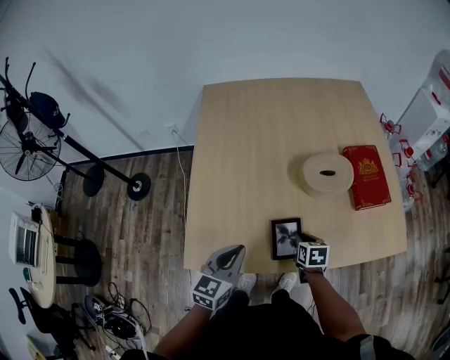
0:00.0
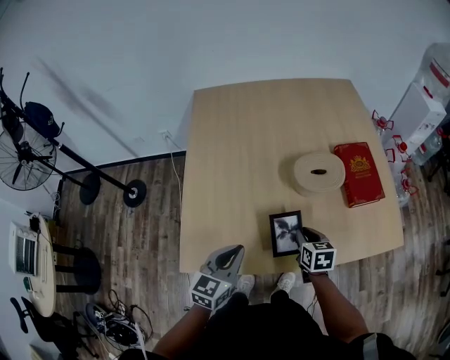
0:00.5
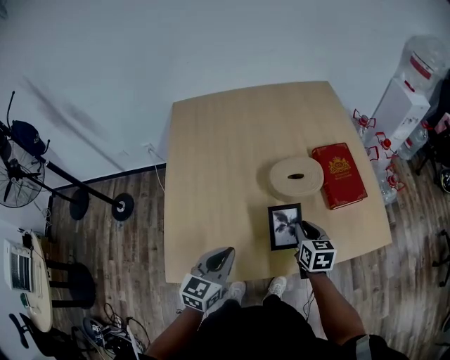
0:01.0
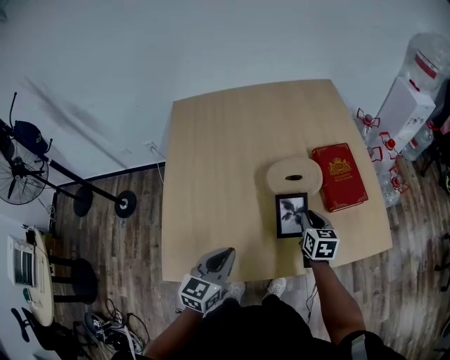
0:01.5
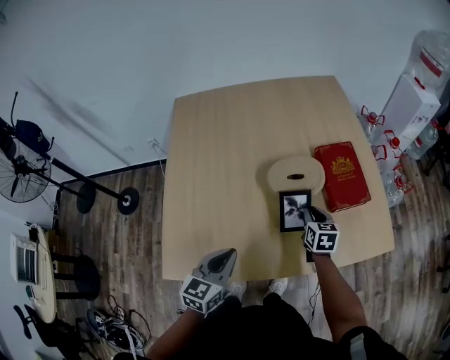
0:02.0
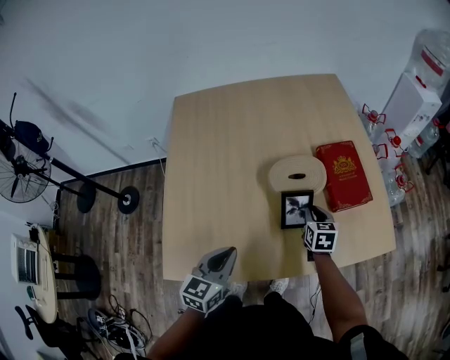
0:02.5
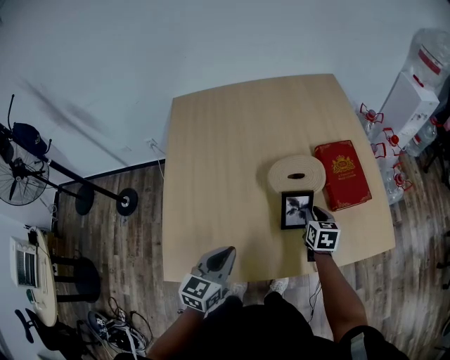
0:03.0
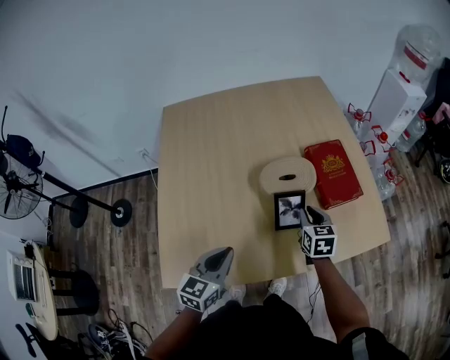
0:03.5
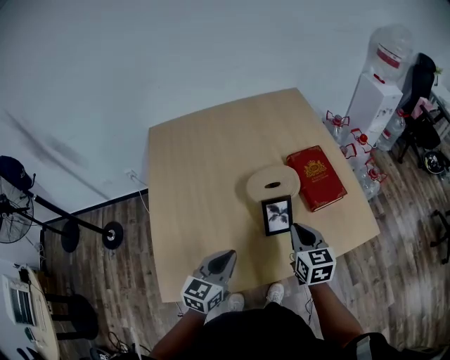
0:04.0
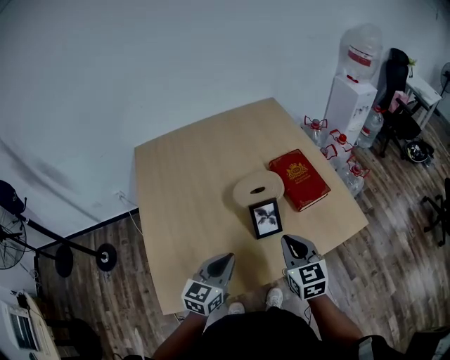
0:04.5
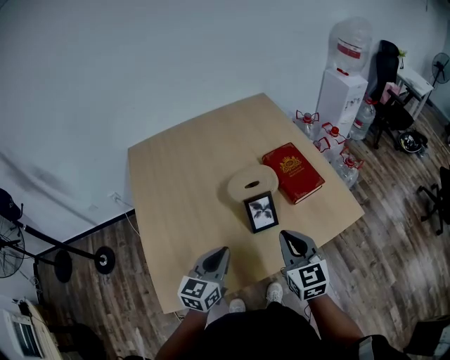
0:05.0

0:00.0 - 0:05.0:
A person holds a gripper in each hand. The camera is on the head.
0:00.0 - 0:02.5: The left gripper goes roughly 10 cm to the right. Meanwhile the right gripper shifts some 20 cm forward, to the right and upward.
0:02.5 - 0:05.0: The right gripper is displaced upward and backward by roughly 25 cm, and turns by about 20 degrees; the left gripper shifts by about 5 cm.

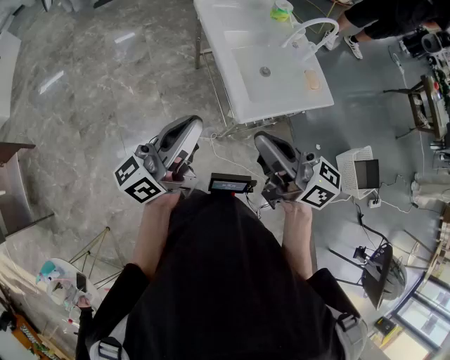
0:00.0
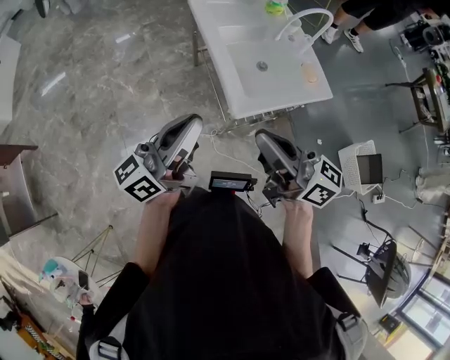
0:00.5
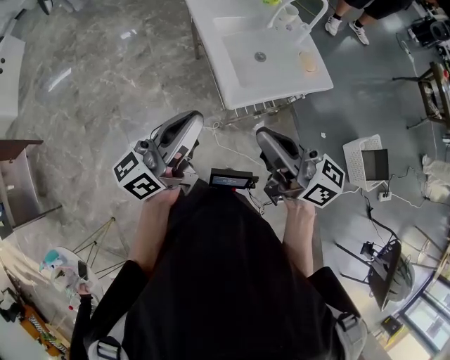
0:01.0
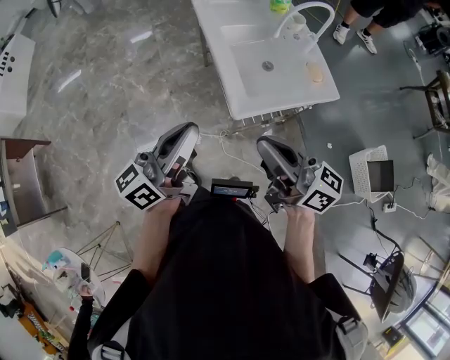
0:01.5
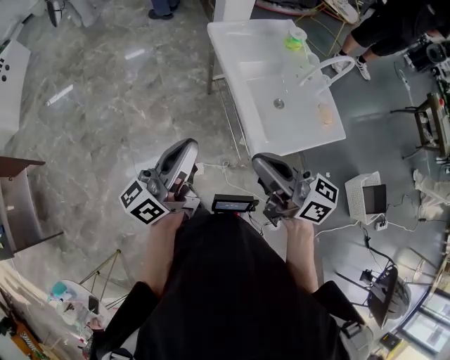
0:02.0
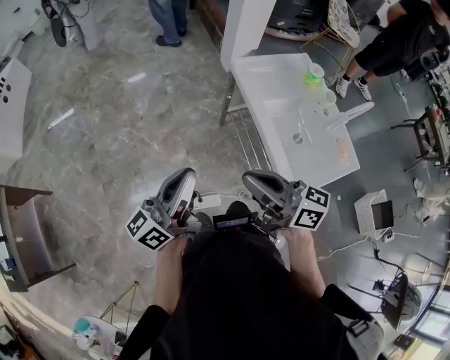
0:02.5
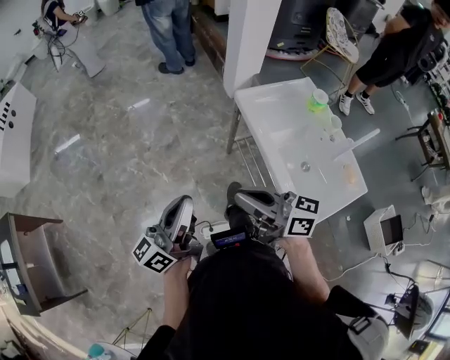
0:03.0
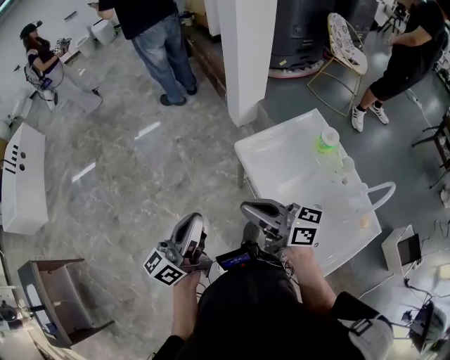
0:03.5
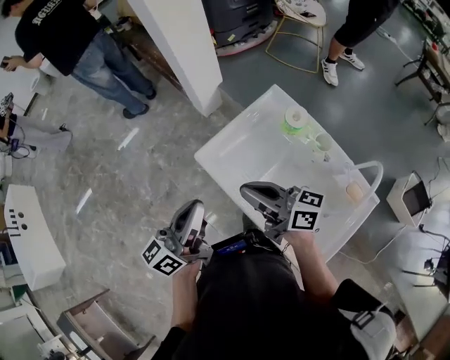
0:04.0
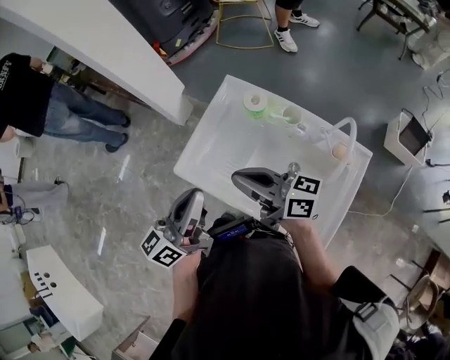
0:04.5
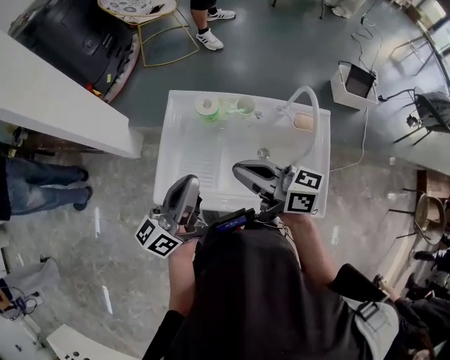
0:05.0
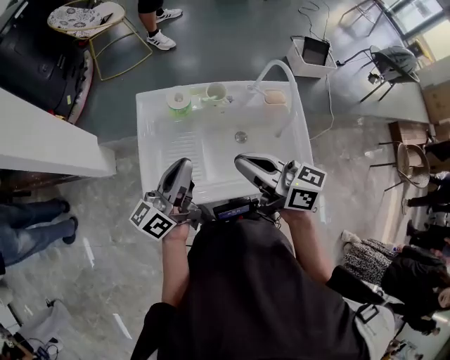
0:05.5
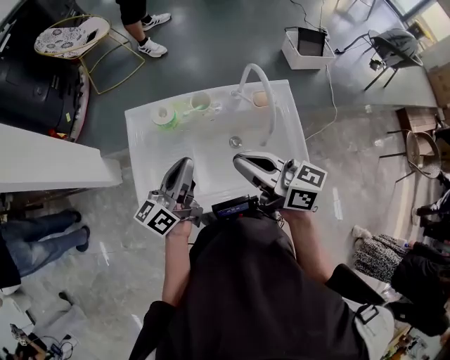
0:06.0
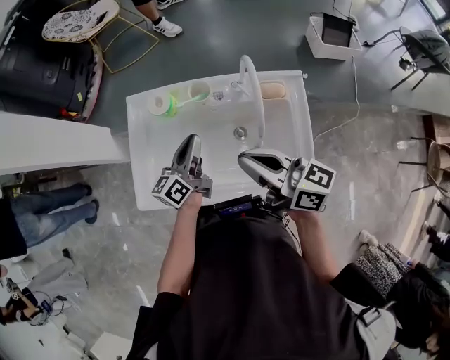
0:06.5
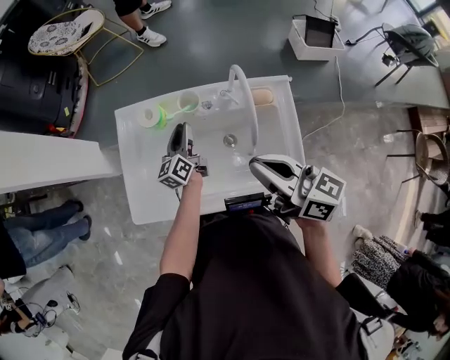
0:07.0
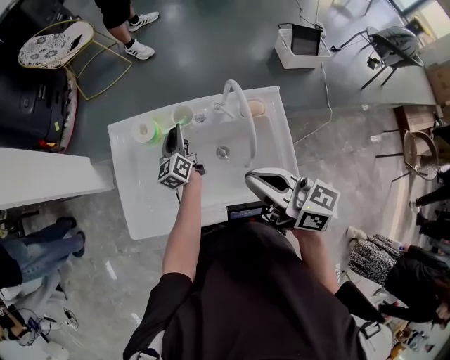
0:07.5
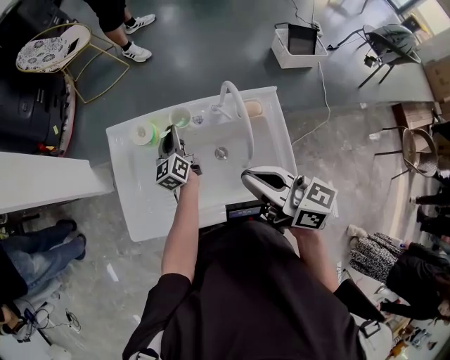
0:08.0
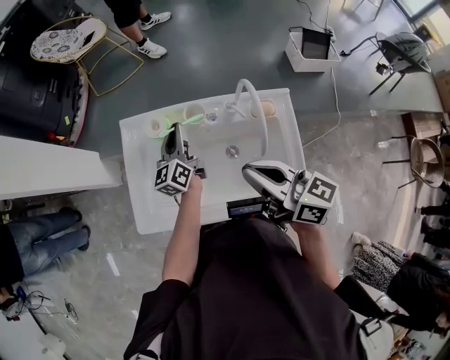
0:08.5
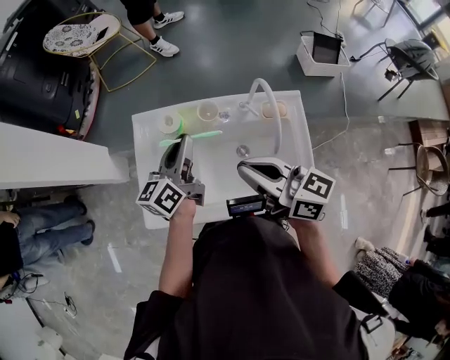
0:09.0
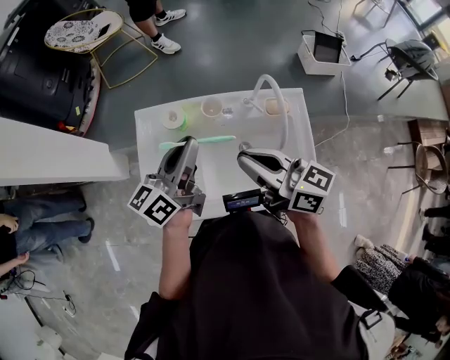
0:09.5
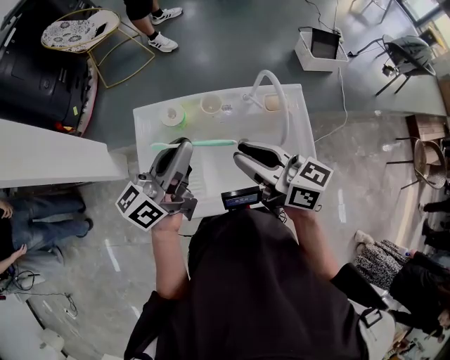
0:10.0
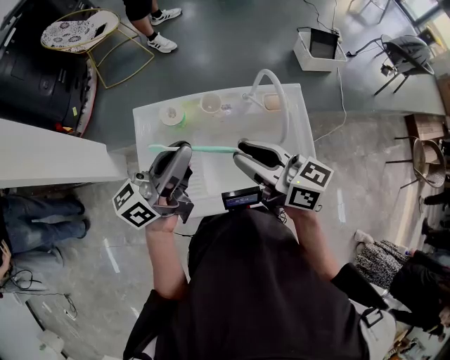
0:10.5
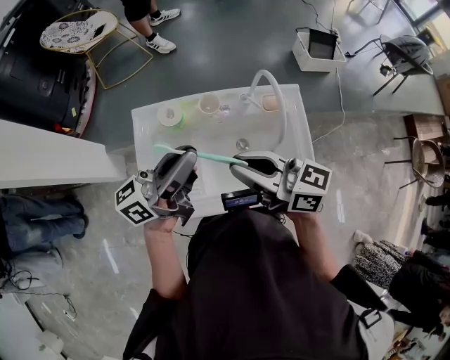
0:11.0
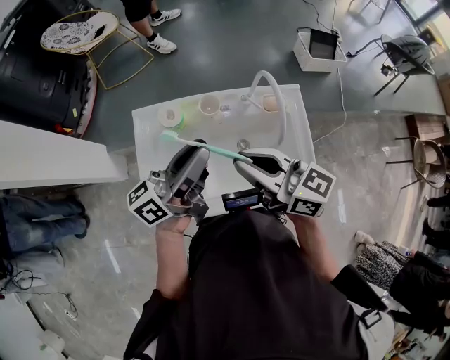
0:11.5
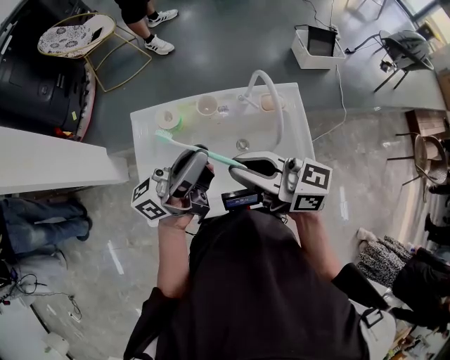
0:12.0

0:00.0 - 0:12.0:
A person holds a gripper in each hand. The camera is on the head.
0:00.0 - 0:02.0: The right gripper shifts some 10 cm forward; the left gripper shifts some 10 cm forward and to the left.
0:02.0 - 0:04.0: Both grippers are carried forward, roughly 40 cm.
0:04.0 - 0:06.0: The left gripper changes place by roughly 25 cm, and turns by some 60 degrees. The right gripper shifts by some 20 cm, and rotates some 60 degrees.
0:06.0 - 0:08.0: The right gripper goes some 5 cm to the right; the left gripper heads forward and downward, covering about 25 cm, and turns by approximately 30 degrees.
0:08.0 - 0:10.0: The right gripper travels to the left by roughly 10 cm, and opens up; the left gripper heads upward and backward, covering roughly 25 cm, and rotates roughly 40 degrees.
0:10.0 - 0:12.0: The left gripper ends up some 5 cm from where it was, and changes its angle by approximately 30 degrees.

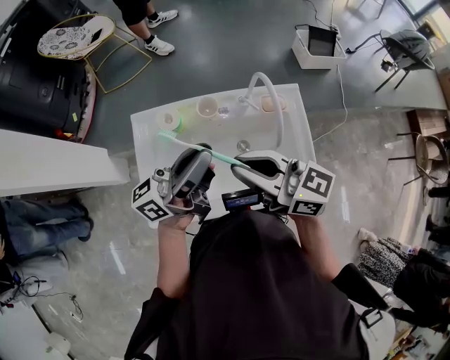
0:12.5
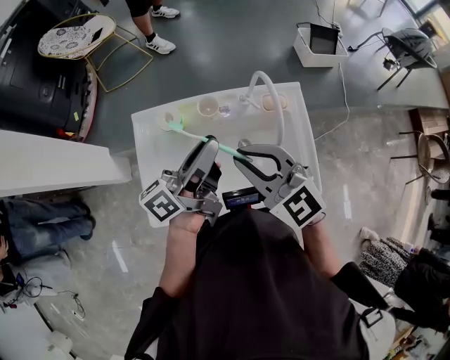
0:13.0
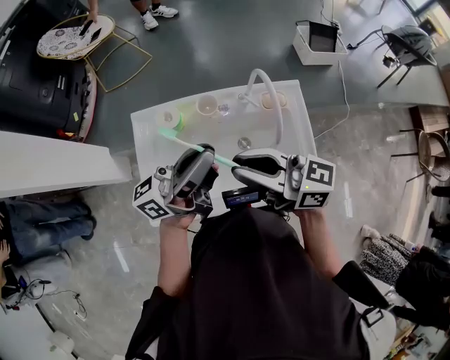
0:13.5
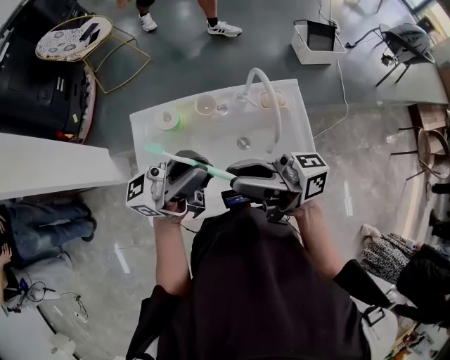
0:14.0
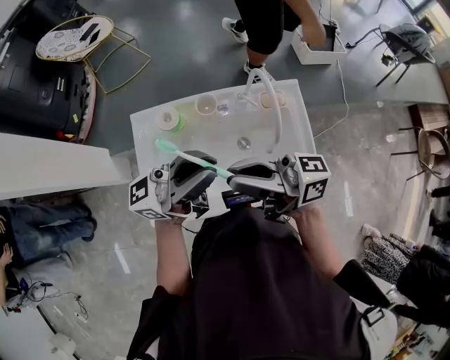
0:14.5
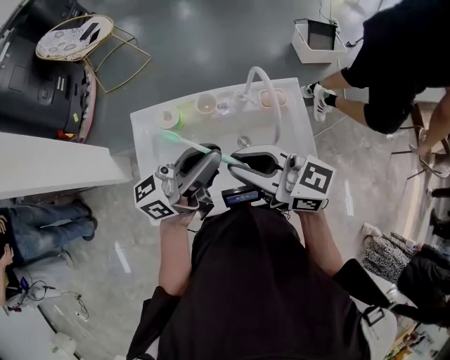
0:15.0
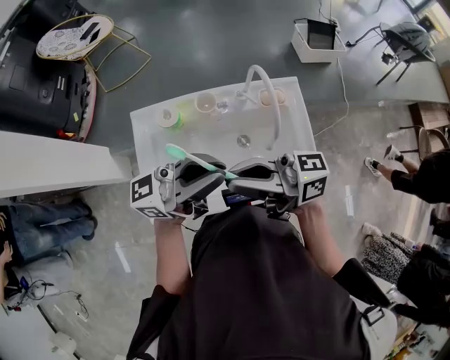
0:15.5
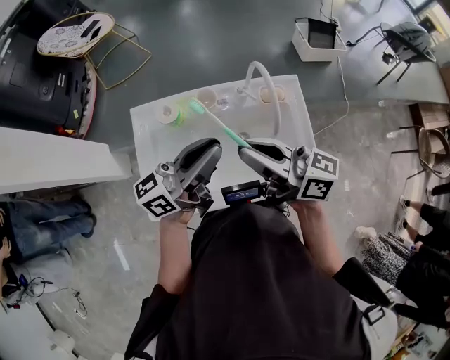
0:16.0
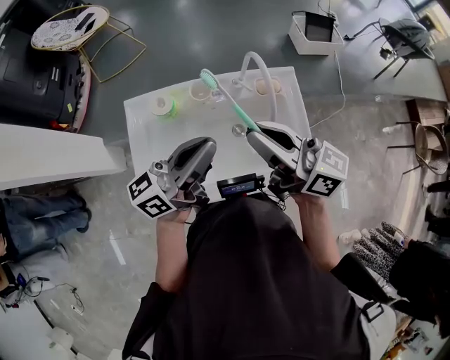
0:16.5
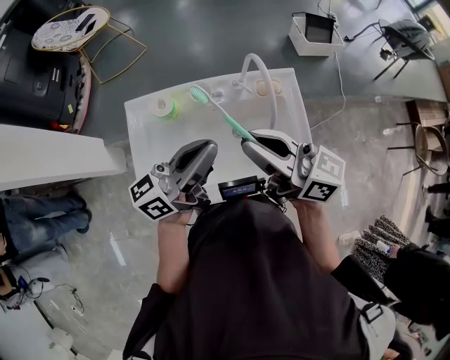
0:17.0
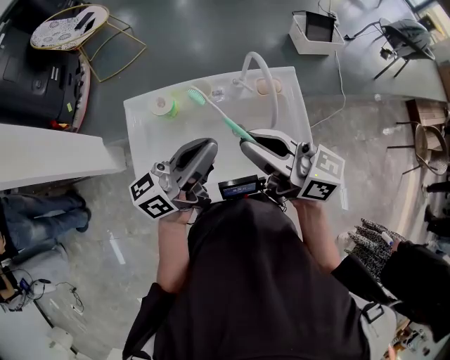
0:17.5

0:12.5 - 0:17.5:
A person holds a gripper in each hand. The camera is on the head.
0:12.5 - 0:15.0: The left gripper reaches roughly 5 cm upward, then returns.

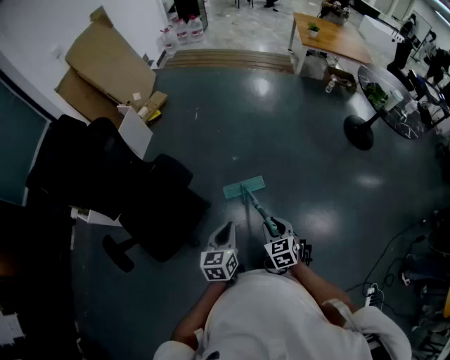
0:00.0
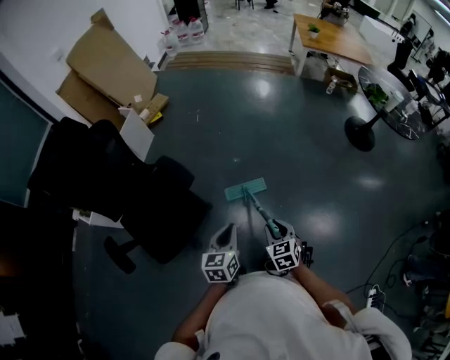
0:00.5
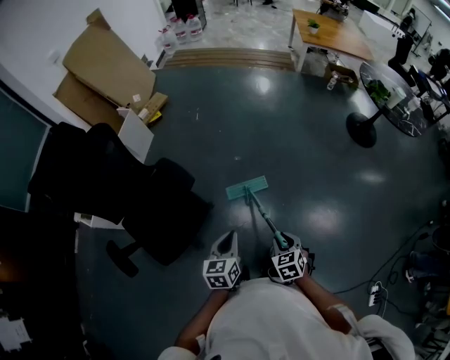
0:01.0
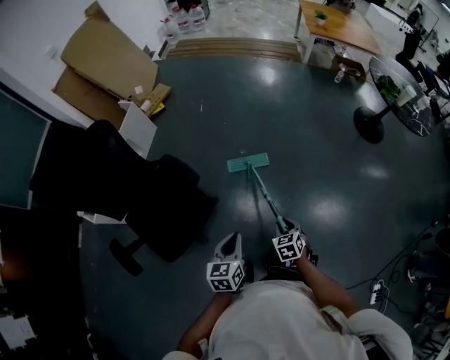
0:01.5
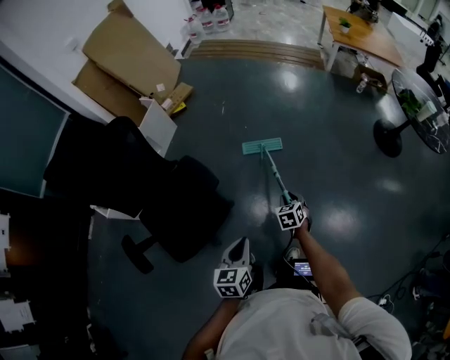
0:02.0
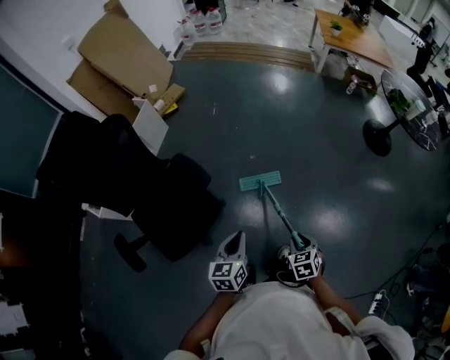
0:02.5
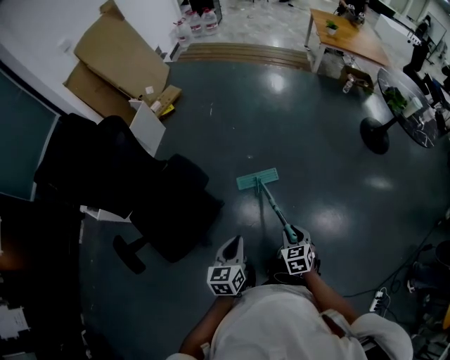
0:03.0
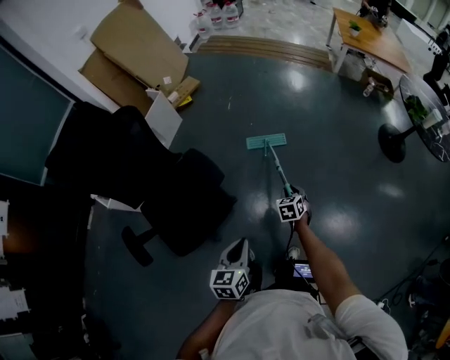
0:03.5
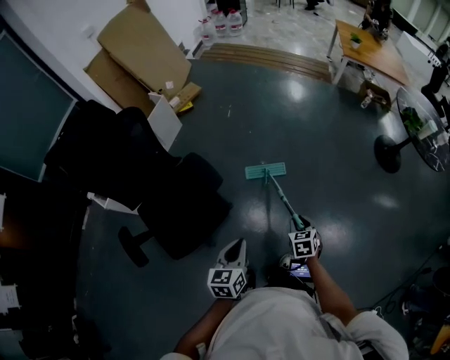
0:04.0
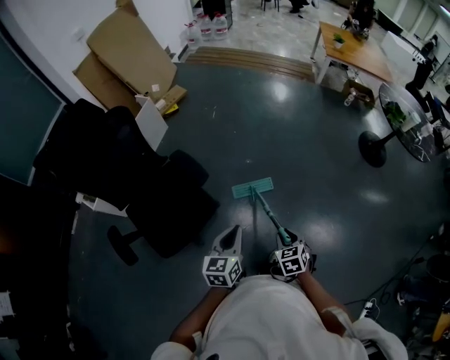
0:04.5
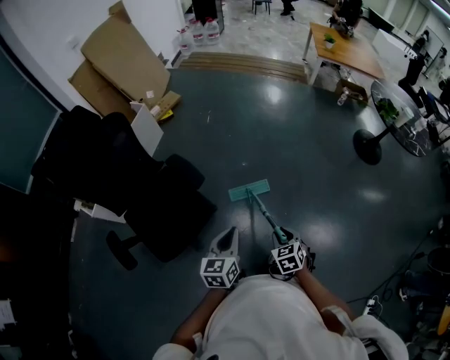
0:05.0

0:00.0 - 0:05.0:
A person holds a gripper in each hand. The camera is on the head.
0:00.0 - 0:02.5: The right gripper swings forward and backward, roughly 20 cm each way, with 2 reversals.
0:02.5 - 0:05.0: The right gripper moves about 20 cm forward and comes back.
